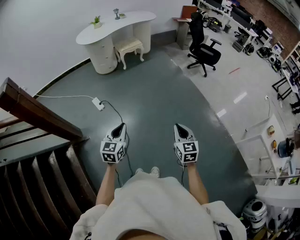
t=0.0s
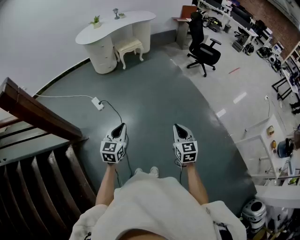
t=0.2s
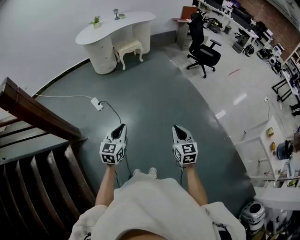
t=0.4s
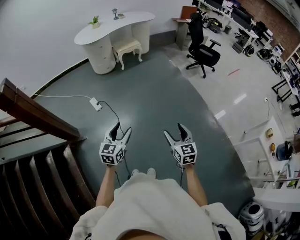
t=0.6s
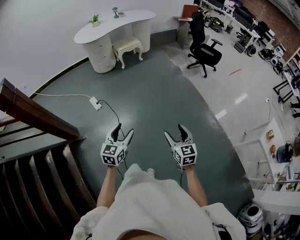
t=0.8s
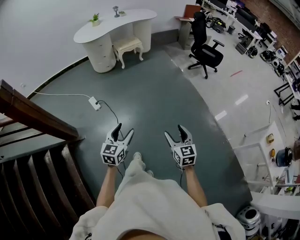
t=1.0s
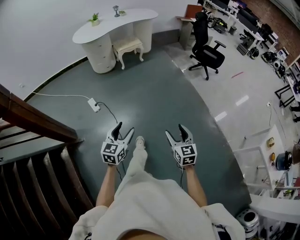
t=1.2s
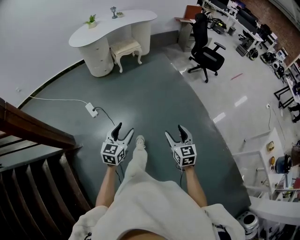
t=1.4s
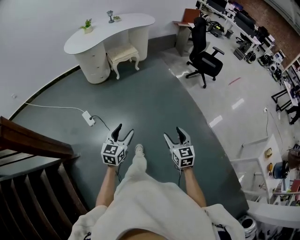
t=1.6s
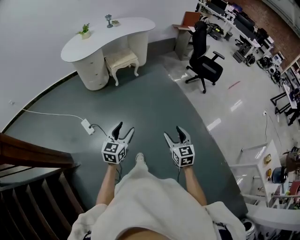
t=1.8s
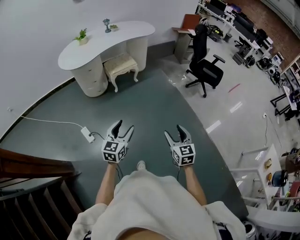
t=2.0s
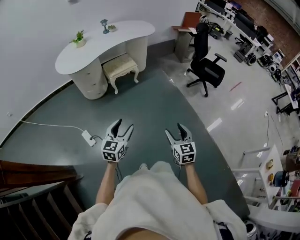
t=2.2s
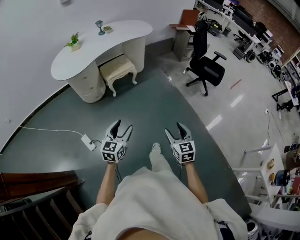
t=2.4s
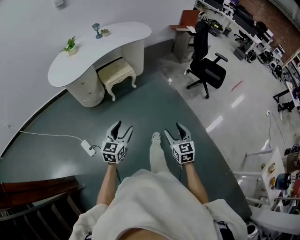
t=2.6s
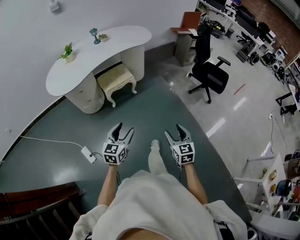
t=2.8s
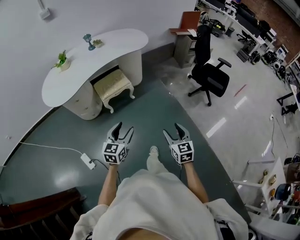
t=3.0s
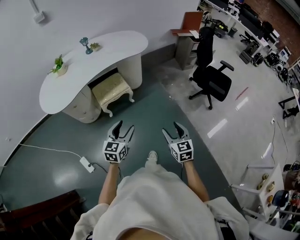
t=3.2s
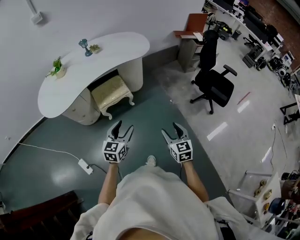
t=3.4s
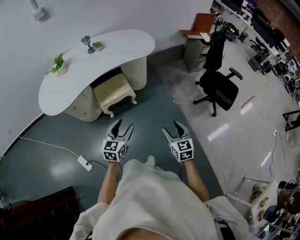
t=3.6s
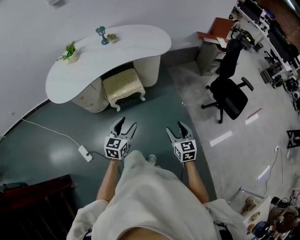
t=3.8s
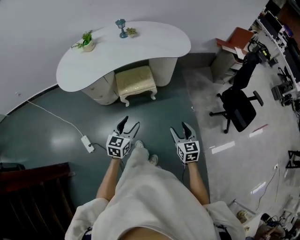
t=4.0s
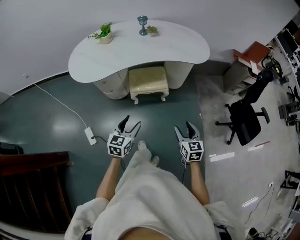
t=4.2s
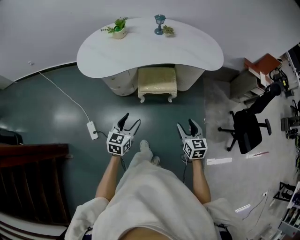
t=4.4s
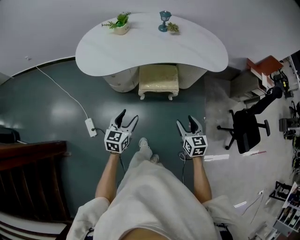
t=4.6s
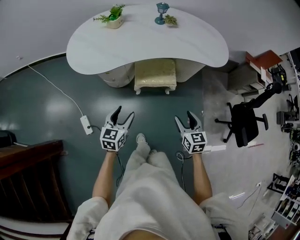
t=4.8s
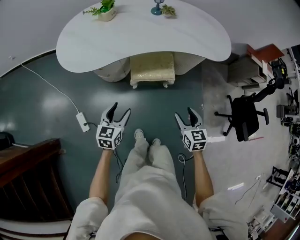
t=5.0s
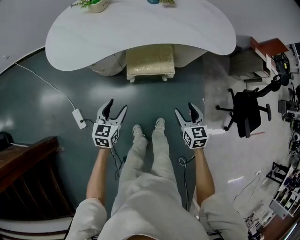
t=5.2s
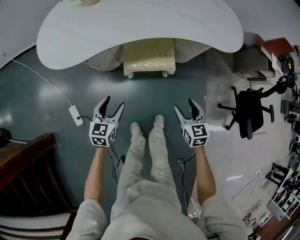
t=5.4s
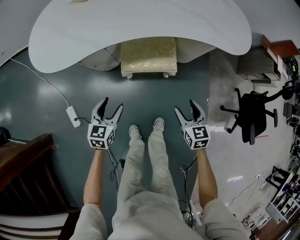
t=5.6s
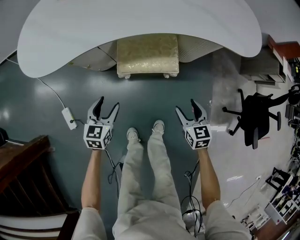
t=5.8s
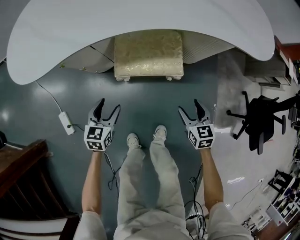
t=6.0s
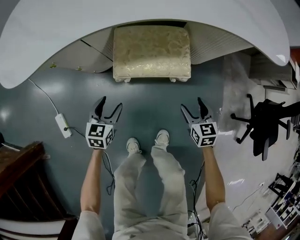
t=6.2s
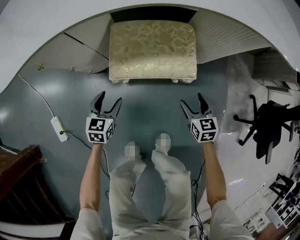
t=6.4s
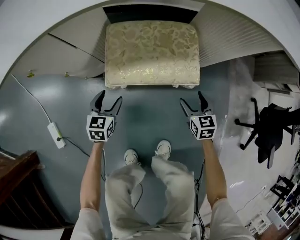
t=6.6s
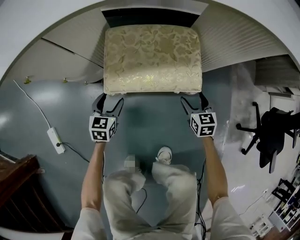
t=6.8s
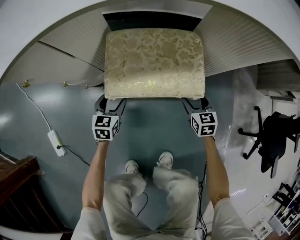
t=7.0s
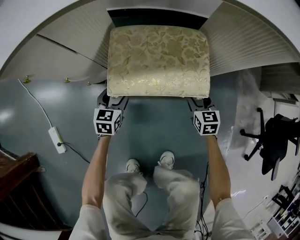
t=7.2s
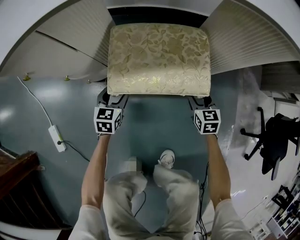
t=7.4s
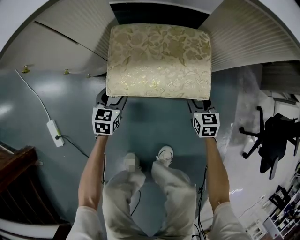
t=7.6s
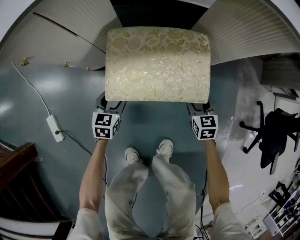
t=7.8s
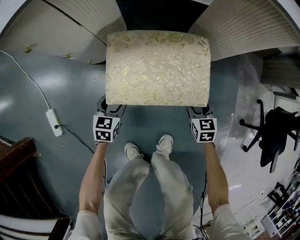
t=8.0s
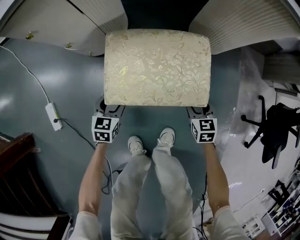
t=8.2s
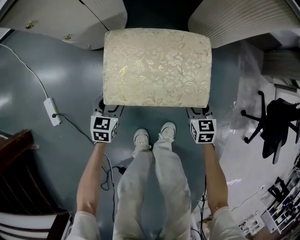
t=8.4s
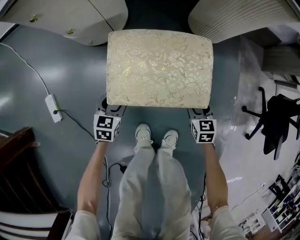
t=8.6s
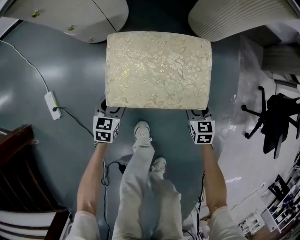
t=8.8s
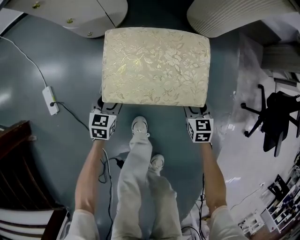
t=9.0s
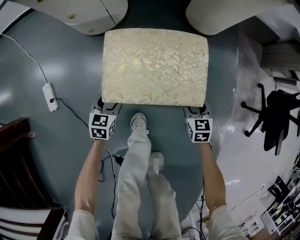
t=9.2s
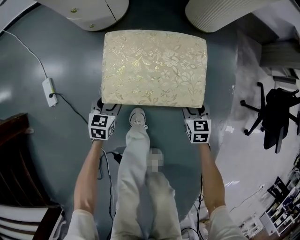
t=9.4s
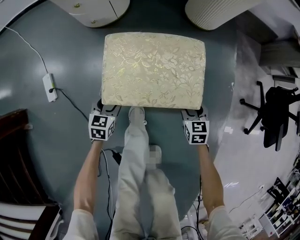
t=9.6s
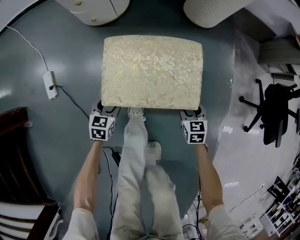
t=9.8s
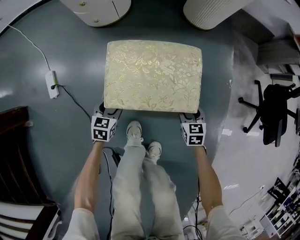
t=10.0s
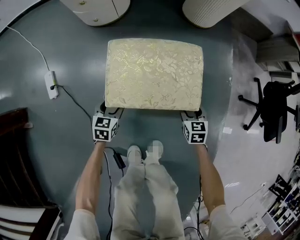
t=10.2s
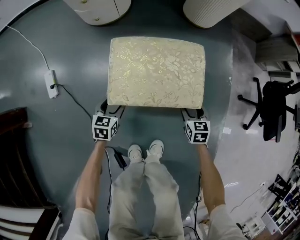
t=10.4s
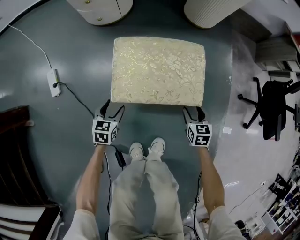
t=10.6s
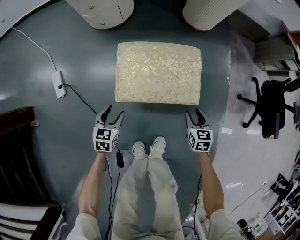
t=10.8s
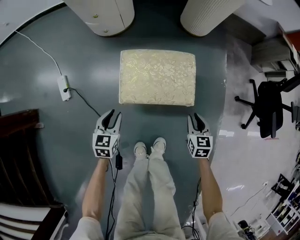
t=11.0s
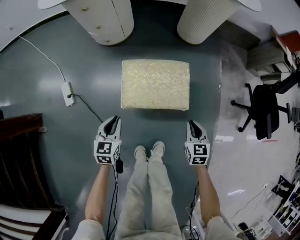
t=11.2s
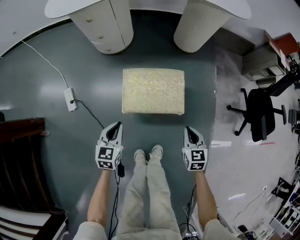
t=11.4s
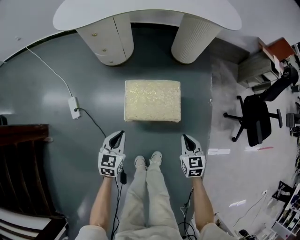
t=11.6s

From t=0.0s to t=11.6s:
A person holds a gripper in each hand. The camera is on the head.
From t=0.0s to t=1.4s: The two grippers go approximately 20 cm forward. The right gripper opens up, while the left gripper opens up.
From t=1.4s to t=2.8s: The two grippers travel together, forward, roughly 60 cm.
From t=2.8s to t=4.4s: The right gripper shifts by roughly 40 cm, and changes its angle by roughly 30 degrees; the left gripper changes place by approximately 35 cm, and swivels approximately 30 degrees.
From t=4.4s to t=5.8s: The grippers both shift downward and forward by some 35 cm.
From t=5.8s to t=7.2s: Both grippers travel together downward and forward, about 40 cm.
From t=7.2s to t=8.8s: The grippers both shift backward by roughly 20 cm.
From t=8.8s to t=10.2s: Both grippers move forward, approximately 10 cm.
From t=10.2s to t=11.6s: The grippers both shift upward by some 35 cm. The right gripper closes up; the left gripper closes up.

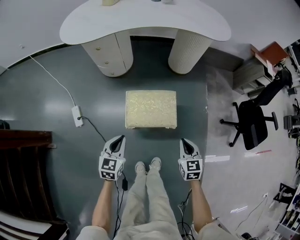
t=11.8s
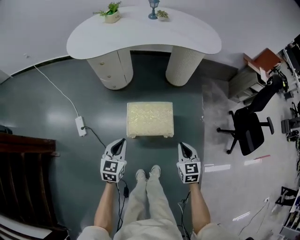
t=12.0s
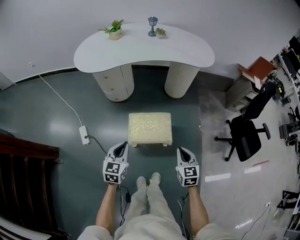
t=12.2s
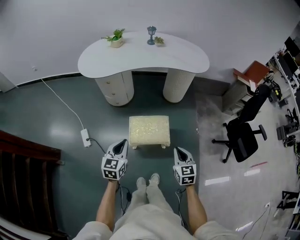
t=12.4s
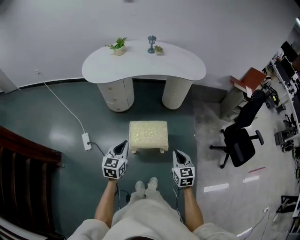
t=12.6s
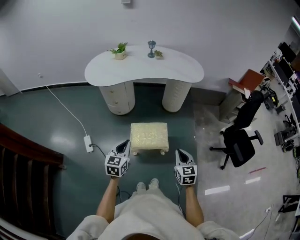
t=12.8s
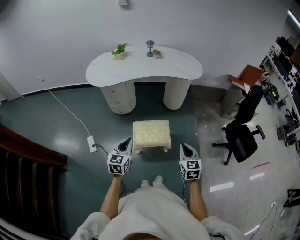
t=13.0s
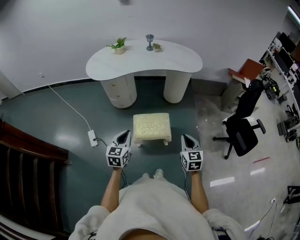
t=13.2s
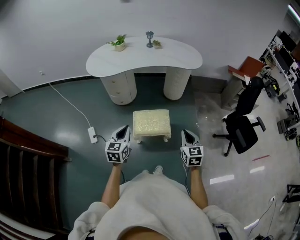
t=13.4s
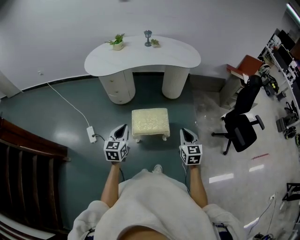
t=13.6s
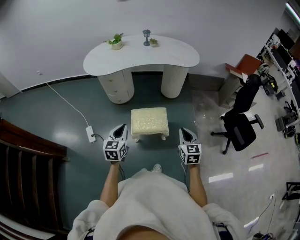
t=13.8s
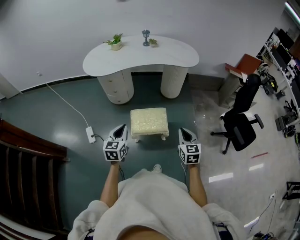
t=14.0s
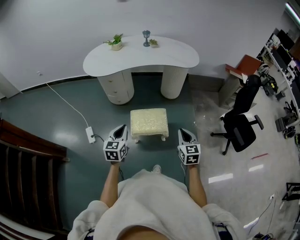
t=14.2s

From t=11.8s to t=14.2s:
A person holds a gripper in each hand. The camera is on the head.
From t=11.8s to t=13.0s: The two grippers go some 25 cm upward.
From t=13.0s to t=14.2s: The grippers move only a little.

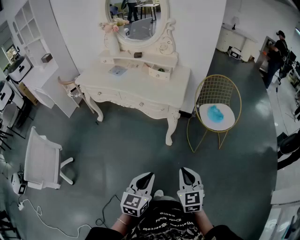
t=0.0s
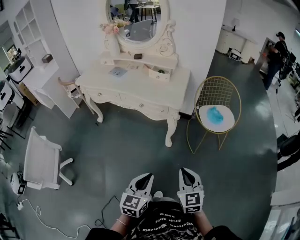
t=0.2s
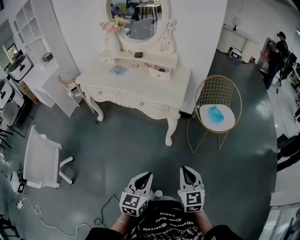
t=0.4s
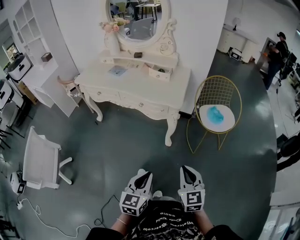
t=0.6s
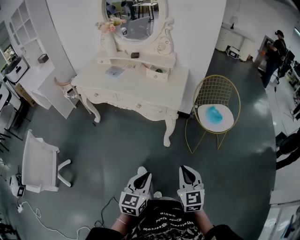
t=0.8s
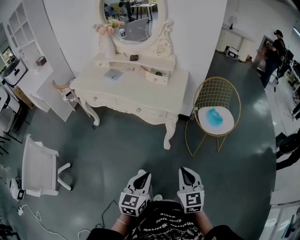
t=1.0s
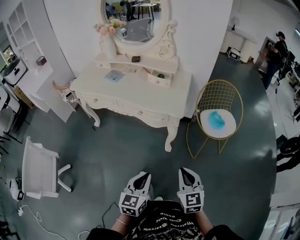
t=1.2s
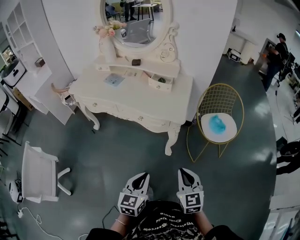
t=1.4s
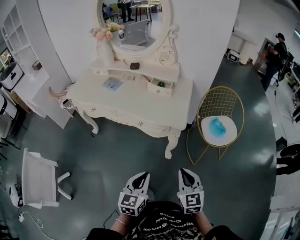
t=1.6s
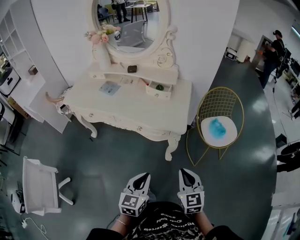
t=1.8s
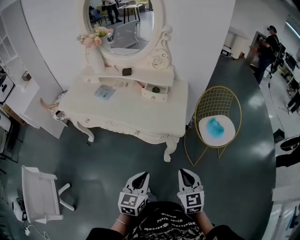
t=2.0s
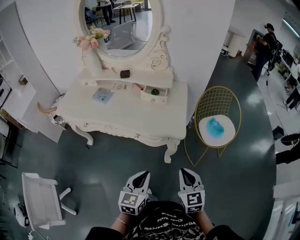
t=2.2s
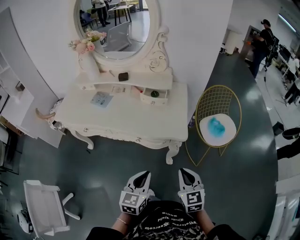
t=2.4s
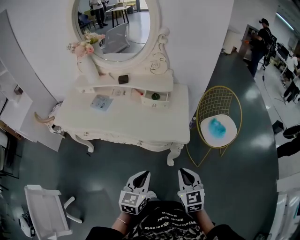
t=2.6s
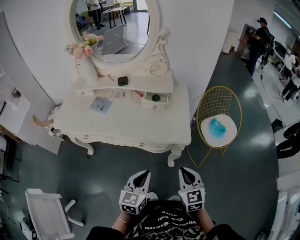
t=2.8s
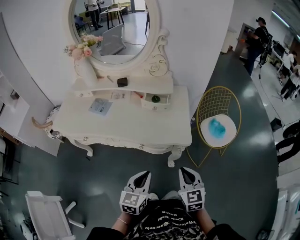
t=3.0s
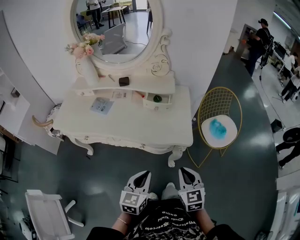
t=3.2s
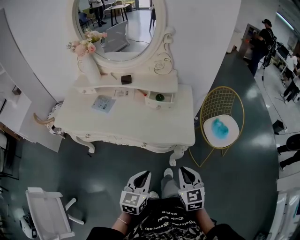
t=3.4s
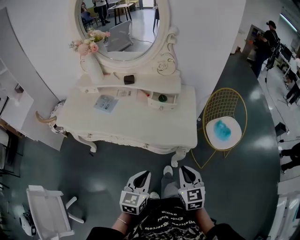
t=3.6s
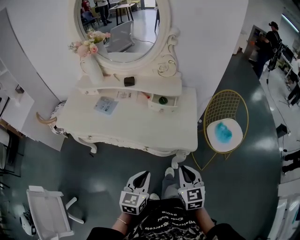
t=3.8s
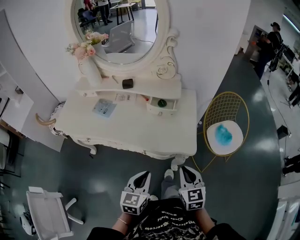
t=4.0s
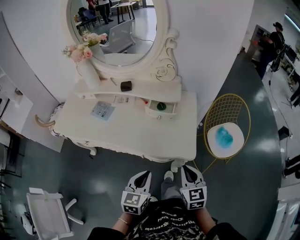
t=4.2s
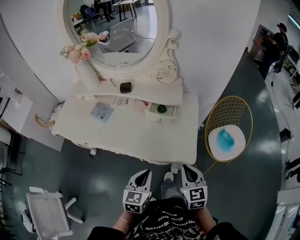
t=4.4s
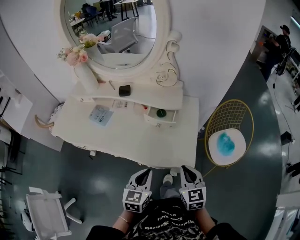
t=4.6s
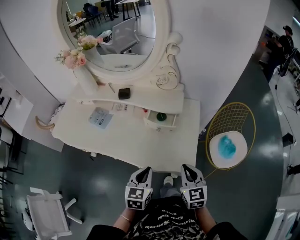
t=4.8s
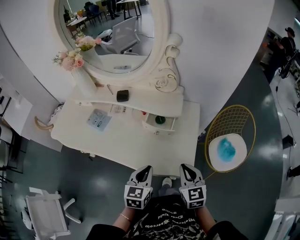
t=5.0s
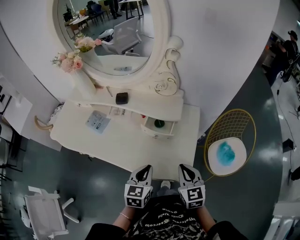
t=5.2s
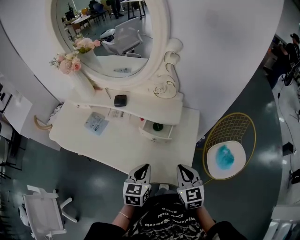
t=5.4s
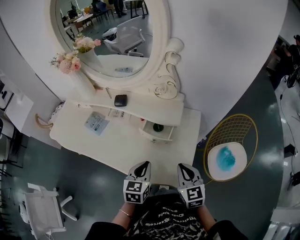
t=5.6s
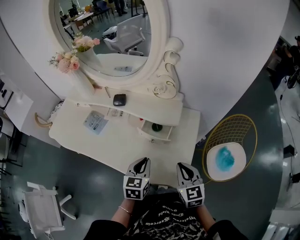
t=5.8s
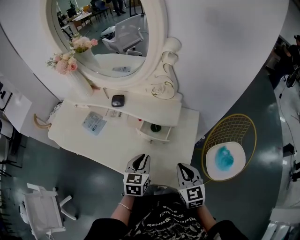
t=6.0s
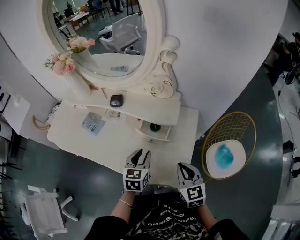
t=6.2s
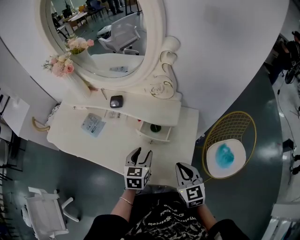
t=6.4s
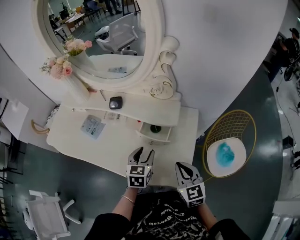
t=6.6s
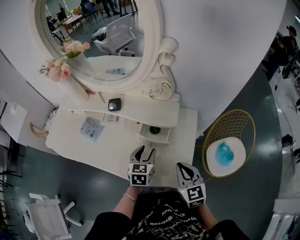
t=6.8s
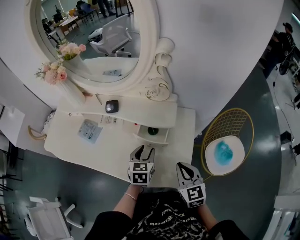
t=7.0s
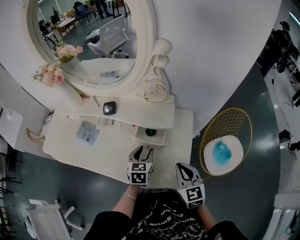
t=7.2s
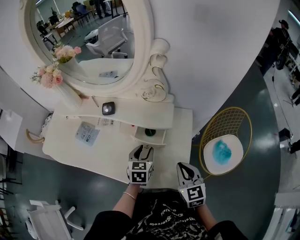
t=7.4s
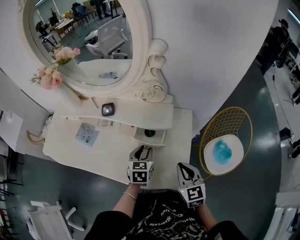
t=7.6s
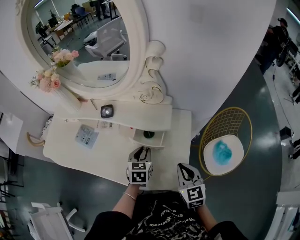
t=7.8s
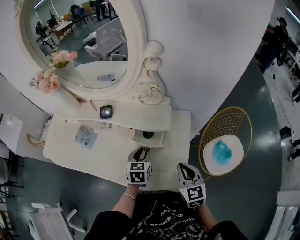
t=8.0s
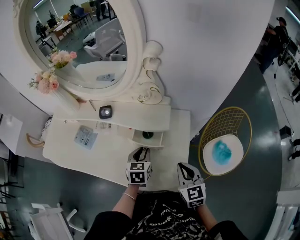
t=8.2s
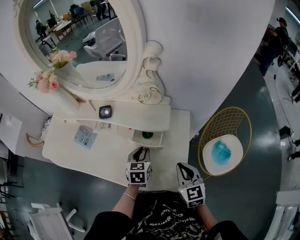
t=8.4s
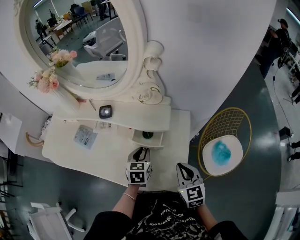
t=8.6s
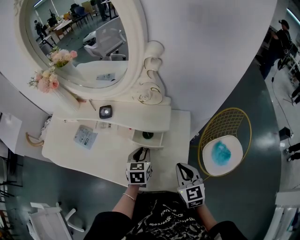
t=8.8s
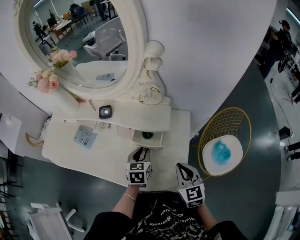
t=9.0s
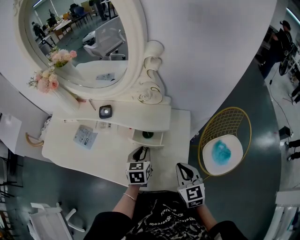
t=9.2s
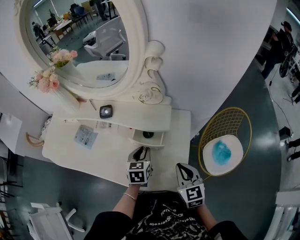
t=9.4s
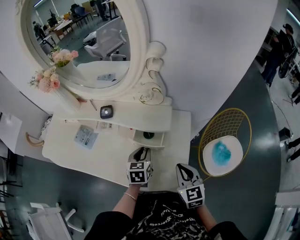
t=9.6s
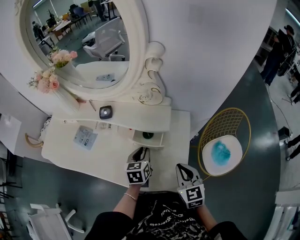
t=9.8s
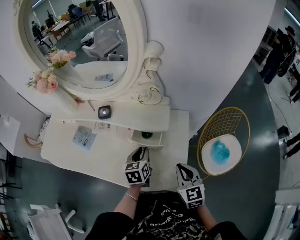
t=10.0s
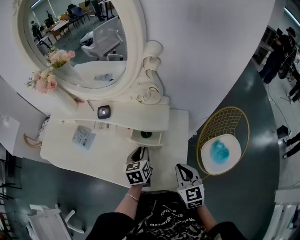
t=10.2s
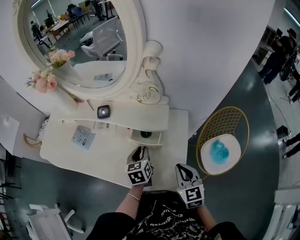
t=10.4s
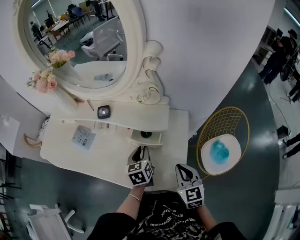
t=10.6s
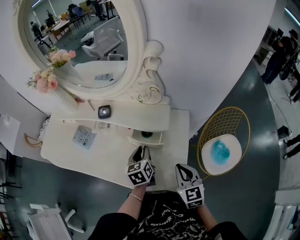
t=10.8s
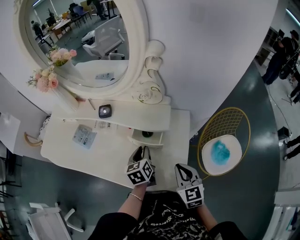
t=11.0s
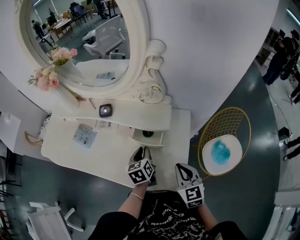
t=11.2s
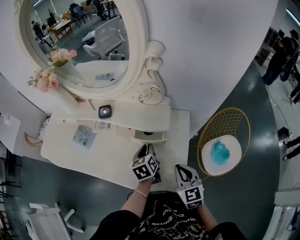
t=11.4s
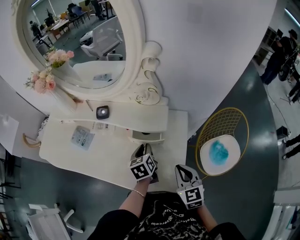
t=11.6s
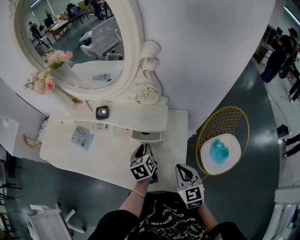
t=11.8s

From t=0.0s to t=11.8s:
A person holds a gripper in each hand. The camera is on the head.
From t=0.0s to t=1.4s: The two grippers go some 10 cm forward.
From t=1.4s to t=3.0s: The grippers both shift forward and to the left by approximately 20 cm.
From t=3.0s to t=4.4s: Both grippers travel together forward, about 10 cm.
From t=4.4s to t=6.0s: Both grippers move forward, some 15 cm.
From t=6.0s to t=7.4s: The left gripper travels forward by approximately 5 cm, and opens up.
From t=7.4s to t=10.4s: The grippers stay close to where they were, moving slightly.
From t=10.4s to t=11.8s: The grippers stay close to where they were, moving slightly.
